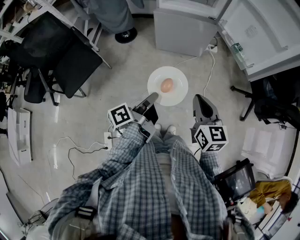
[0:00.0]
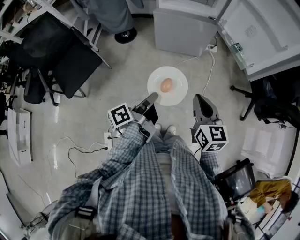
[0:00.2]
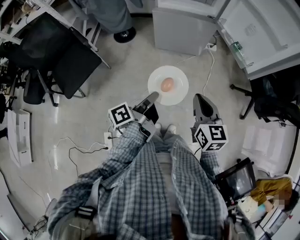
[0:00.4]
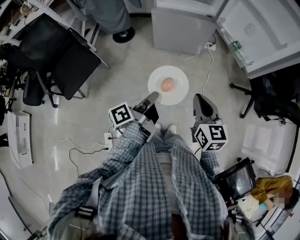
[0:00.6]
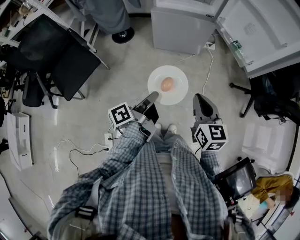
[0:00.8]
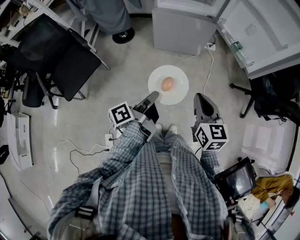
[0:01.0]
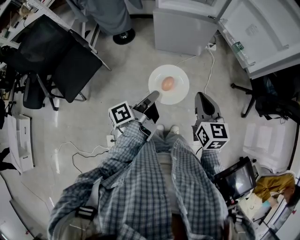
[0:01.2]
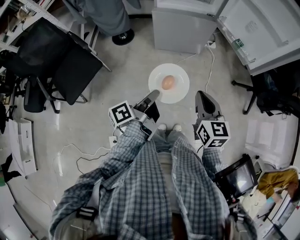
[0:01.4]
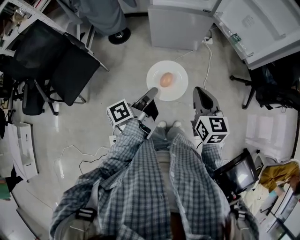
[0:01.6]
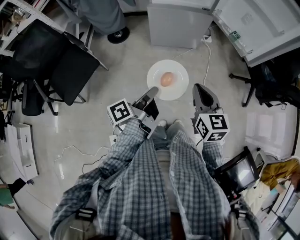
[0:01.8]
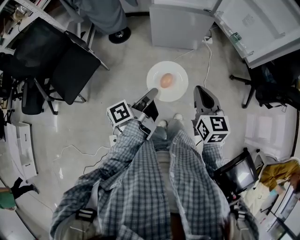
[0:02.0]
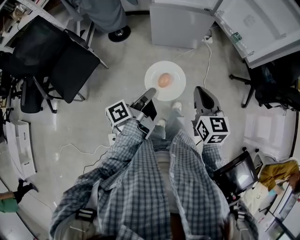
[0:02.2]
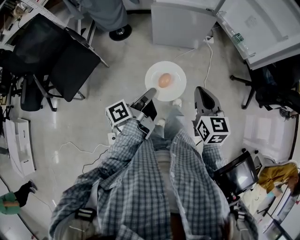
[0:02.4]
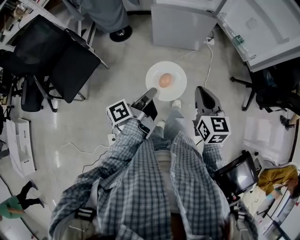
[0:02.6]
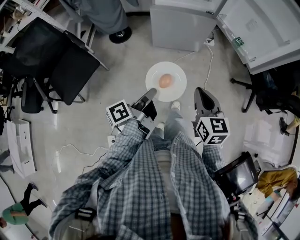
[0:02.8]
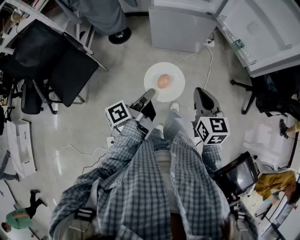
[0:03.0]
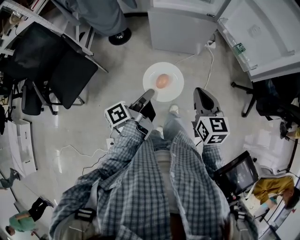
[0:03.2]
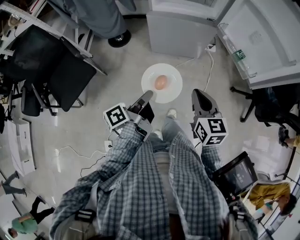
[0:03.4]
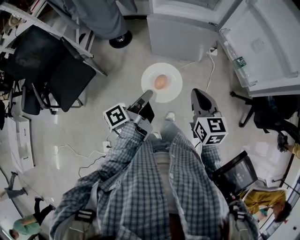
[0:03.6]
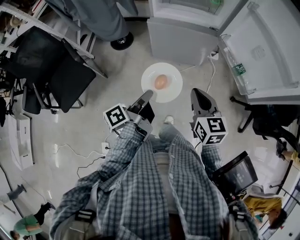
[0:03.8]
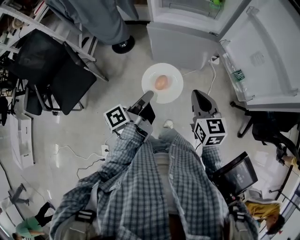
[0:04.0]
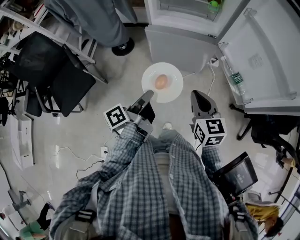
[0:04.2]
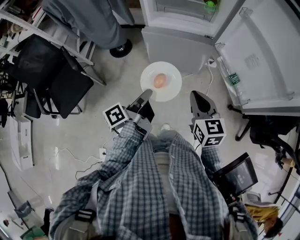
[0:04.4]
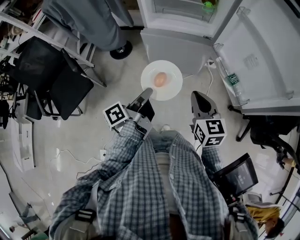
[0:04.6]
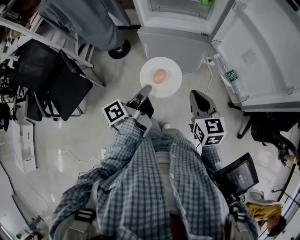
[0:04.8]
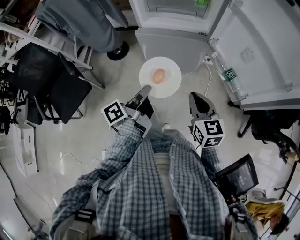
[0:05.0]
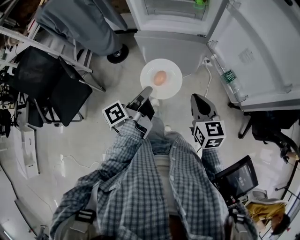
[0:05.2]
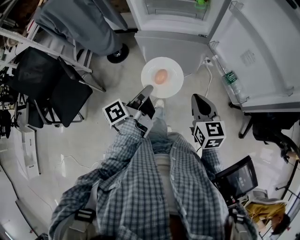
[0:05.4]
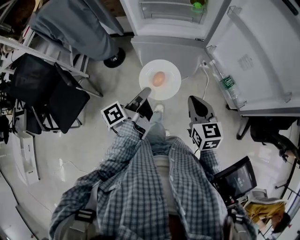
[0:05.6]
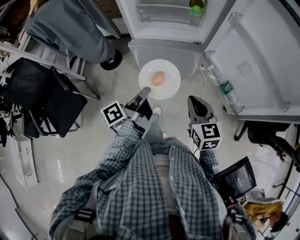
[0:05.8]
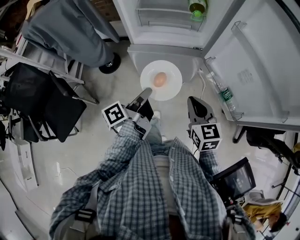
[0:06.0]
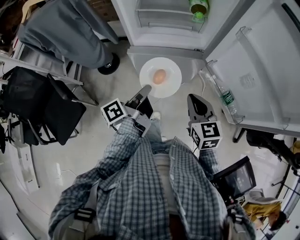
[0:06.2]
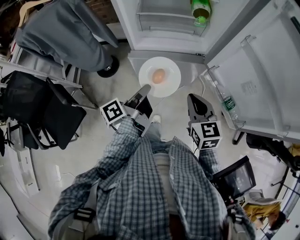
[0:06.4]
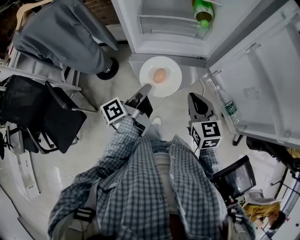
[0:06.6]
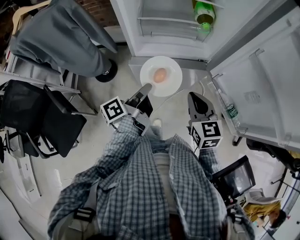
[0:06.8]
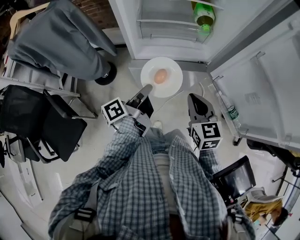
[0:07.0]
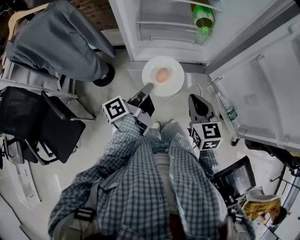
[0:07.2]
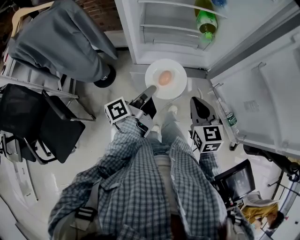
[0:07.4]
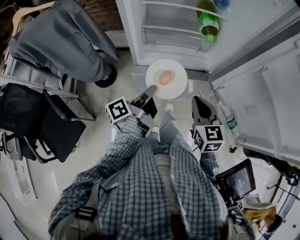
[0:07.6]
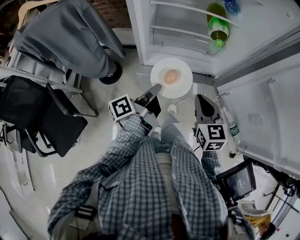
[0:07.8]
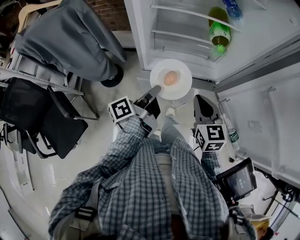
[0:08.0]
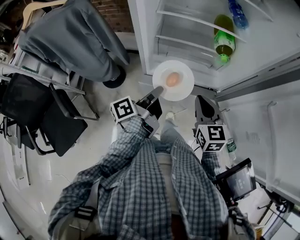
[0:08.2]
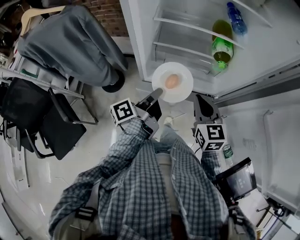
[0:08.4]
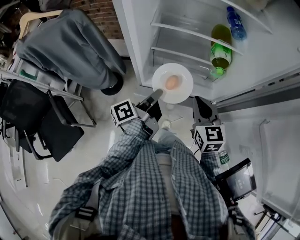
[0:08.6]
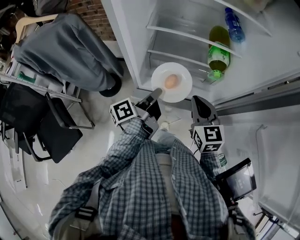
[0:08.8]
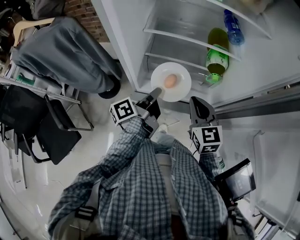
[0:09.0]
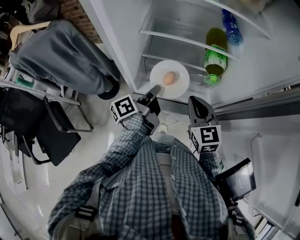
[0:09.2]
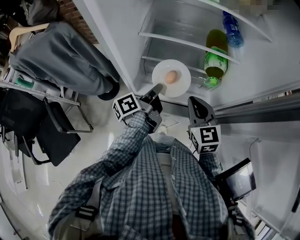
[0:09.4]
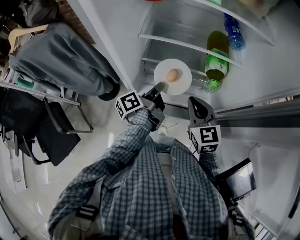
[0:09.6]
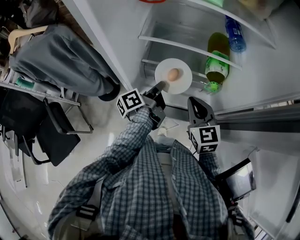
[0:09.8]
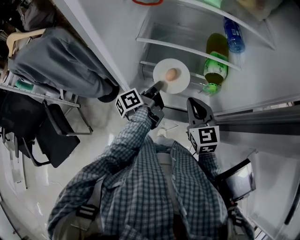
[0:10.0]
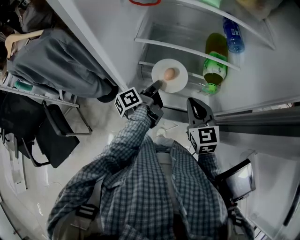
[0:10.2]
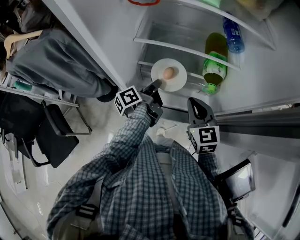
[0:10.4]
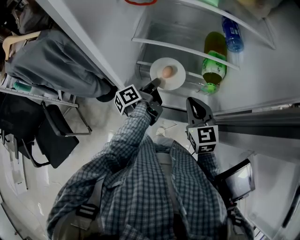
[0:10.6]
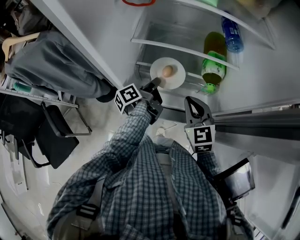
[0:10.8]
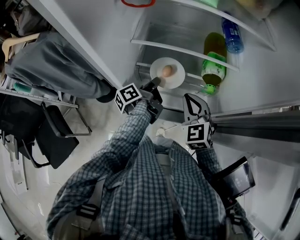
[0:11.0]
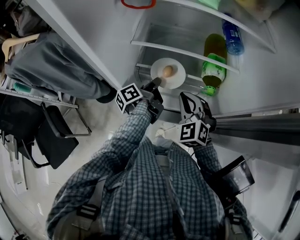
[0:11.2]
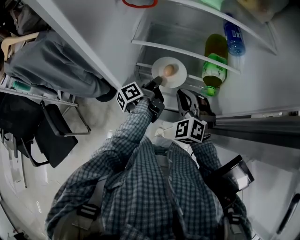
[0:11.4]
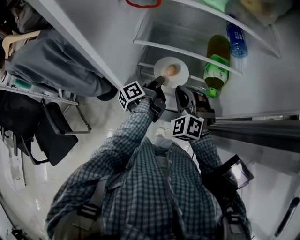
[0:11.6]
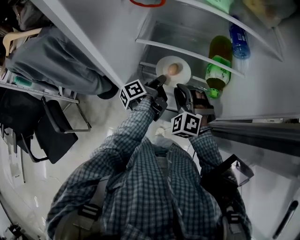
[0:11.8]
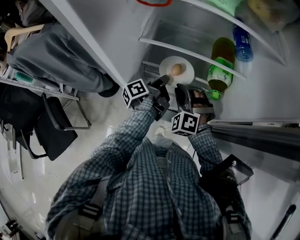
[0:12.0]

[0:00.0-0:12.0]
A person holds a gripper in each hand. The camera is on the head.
0:01.6 to 0:03.0: The right gripper moves about 5 cm.
0:03.0 to 0:04.4: The right gripper changes place by about 20 cm.
0:04.4 to 0:06.0: The right gripper ends up roughly 10 cm from where it was.
0:06.0 to 0:07.6: The right gripper shifts by approximately 15 cm.
0:07.6 to 0:09.0: The right gripper ends up some 20 cm from where it was.
0:09.0 to 0:10.4: The right gripper moves approximately 5 cm.
0:10.4 to 0:12.0: The right gripper shifts by some 10 cm, and rotates around the line of its fingers by some 60 degrees, counterclockwise from behind.

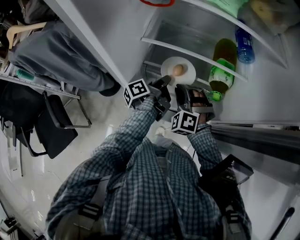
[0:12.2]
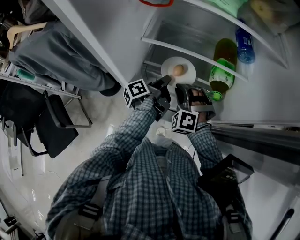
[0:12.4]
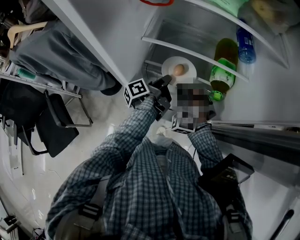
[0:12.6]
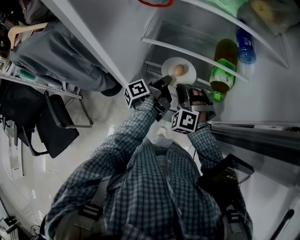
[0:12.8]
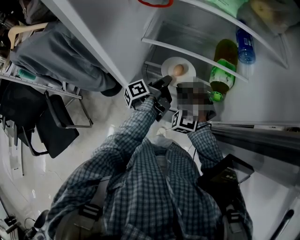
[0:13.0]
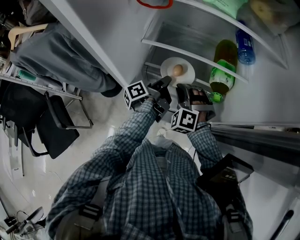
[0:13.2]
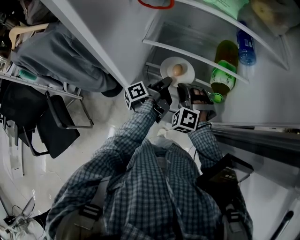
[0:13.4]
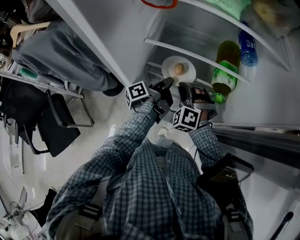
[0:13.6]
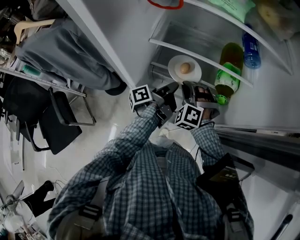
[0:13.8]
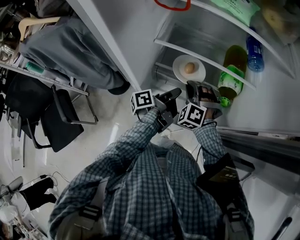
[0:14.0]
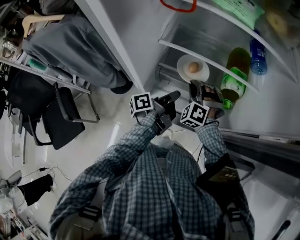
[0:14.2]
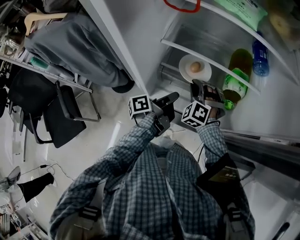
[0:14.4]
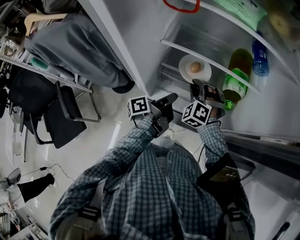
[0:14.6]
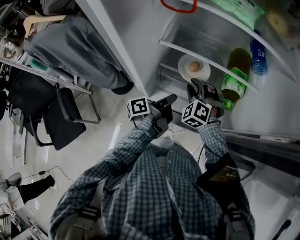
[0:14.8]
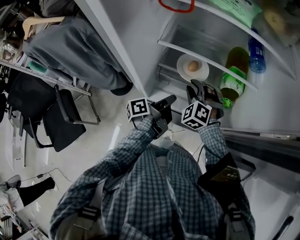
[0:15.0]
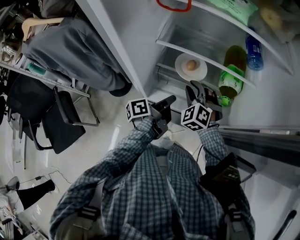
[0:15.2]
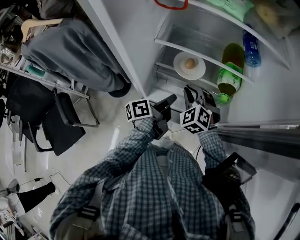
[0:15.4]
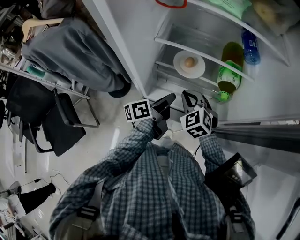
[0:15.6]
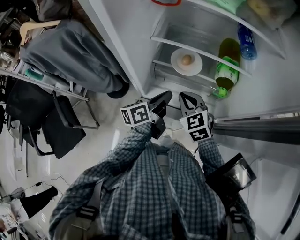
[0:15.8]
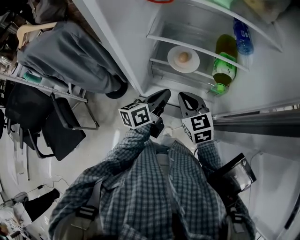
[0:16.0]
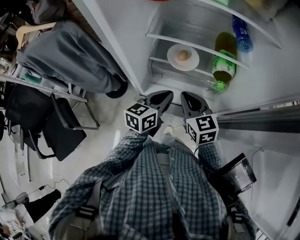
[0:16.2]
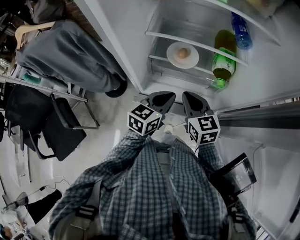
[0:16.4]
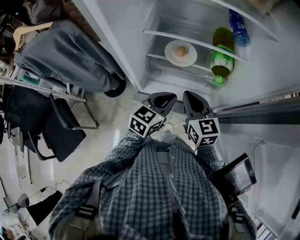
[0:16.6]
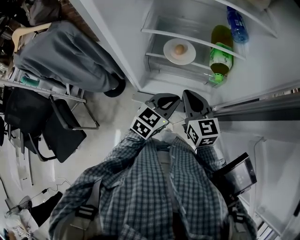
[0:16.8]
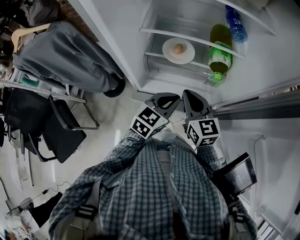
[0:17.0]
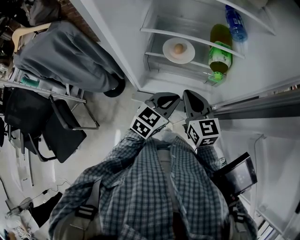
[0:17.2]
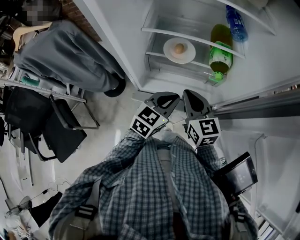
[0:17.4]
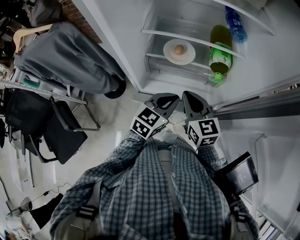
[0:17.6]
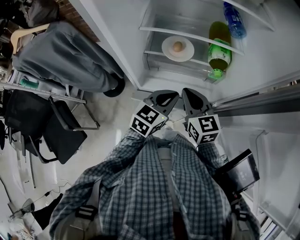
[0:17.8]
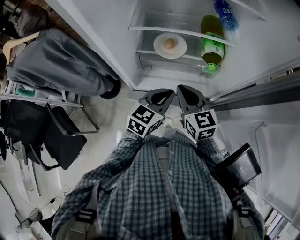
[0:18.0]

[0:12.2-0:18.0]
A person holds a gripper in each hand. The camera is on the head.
0:15.0 to 0:16.6: The right gripper moves approximately 15 cm, twists about 60 degrees clockwise, seen from behind, and closes.

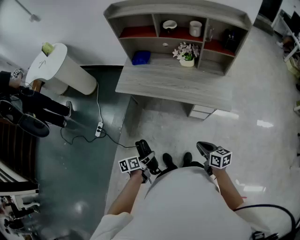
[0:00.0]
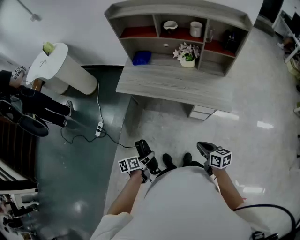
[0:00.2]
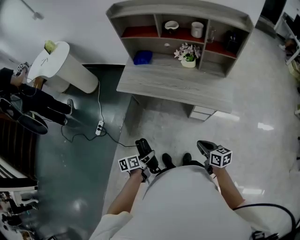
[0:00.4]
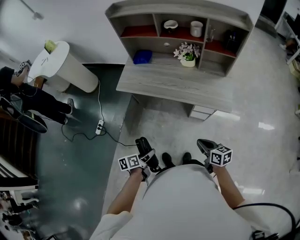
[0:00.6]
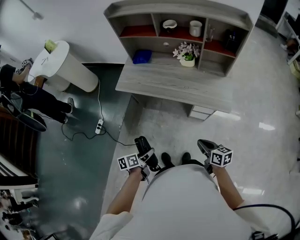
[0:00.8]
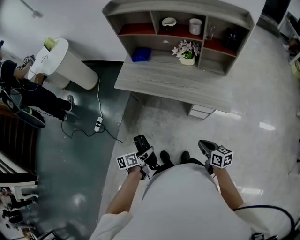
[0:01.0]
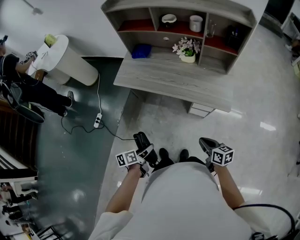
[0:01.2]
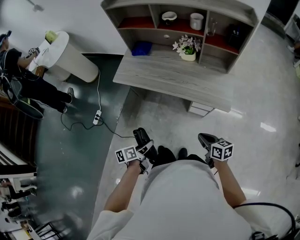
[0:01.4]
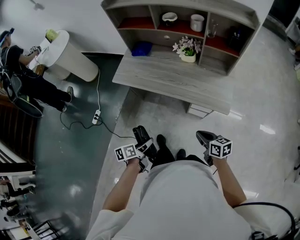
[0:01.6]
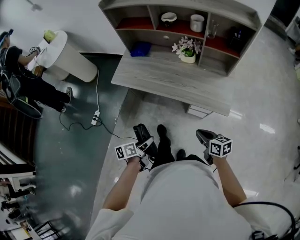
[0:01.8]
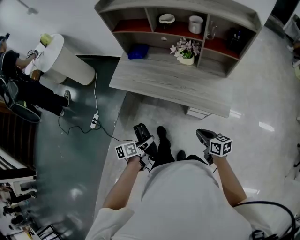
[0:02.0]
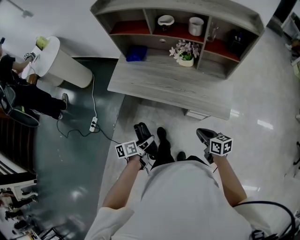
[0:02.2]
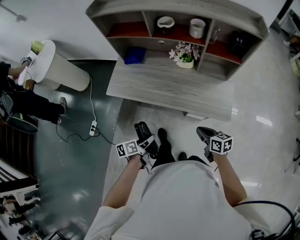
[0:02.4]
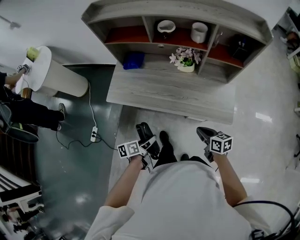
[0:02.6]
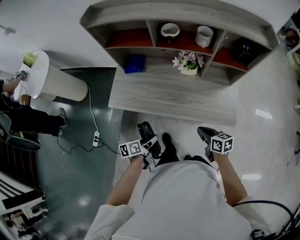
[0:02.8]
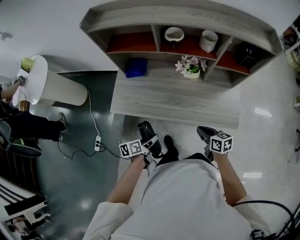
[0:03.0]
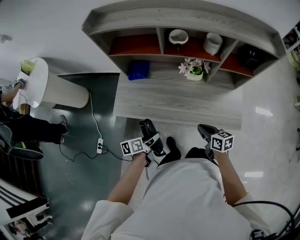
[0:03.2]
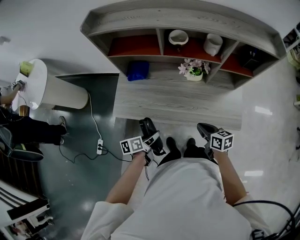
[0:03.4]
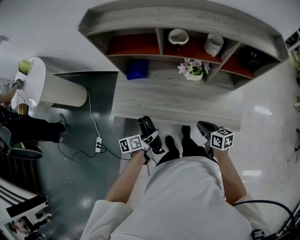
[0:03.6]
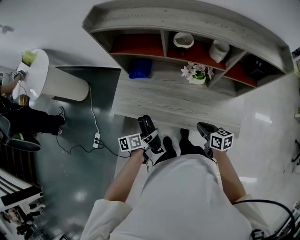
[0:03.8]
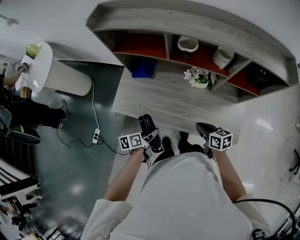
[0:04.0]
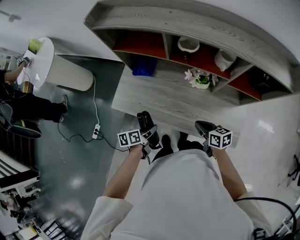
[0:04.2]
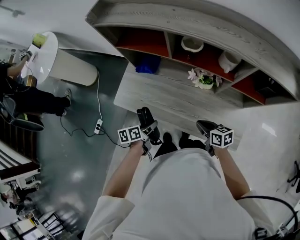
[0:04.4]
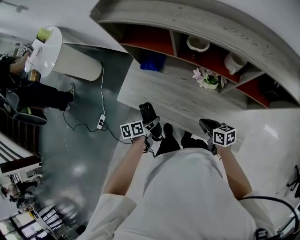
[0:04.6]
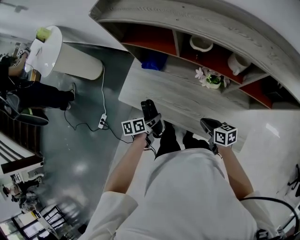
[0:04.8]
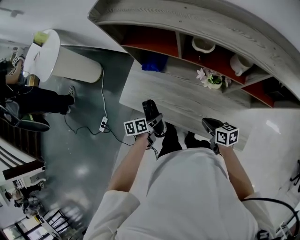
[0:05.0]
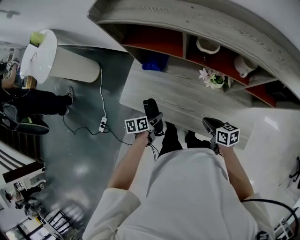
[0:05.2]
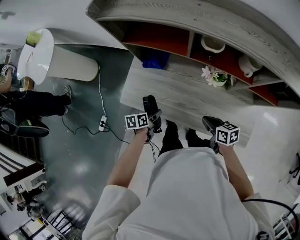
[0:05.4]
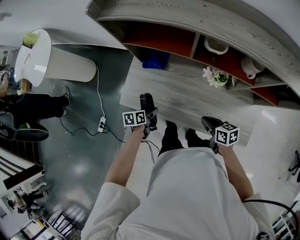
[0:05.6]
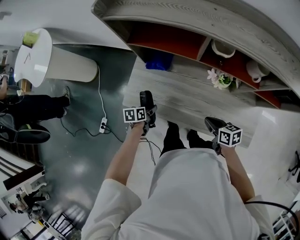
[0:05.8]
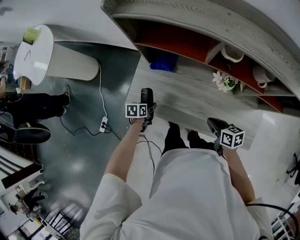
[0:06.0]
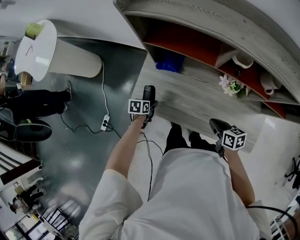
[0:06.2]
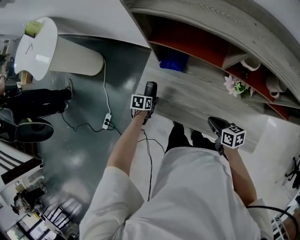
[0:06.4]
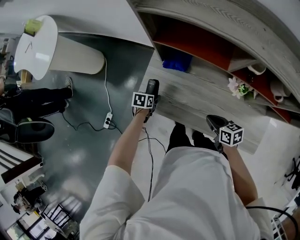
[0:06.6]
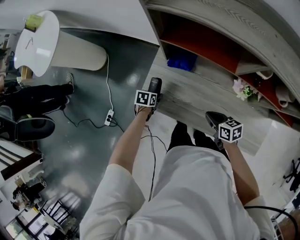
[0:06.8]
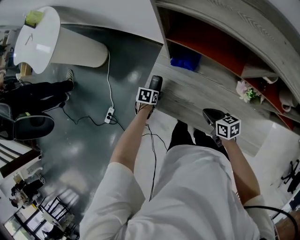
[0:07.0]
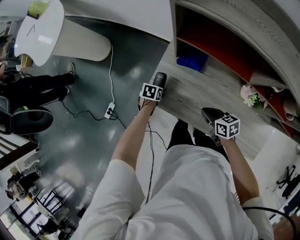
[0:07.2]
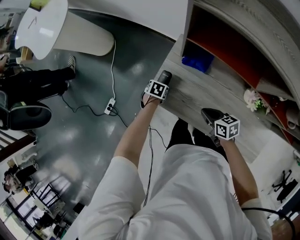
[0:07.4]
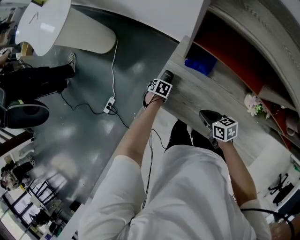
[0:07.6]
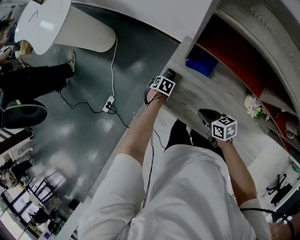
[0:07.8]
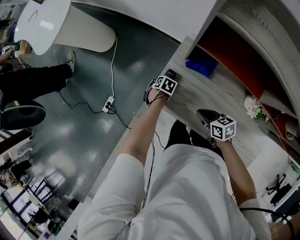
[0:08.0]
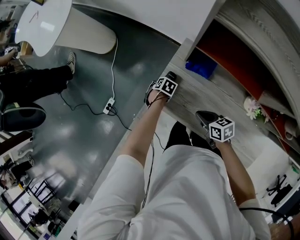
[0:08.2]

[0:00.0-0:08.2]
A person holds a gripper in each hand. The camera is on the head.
0:00.0 to 0:01.6: The two grippers go some 10 cm to the right and forward.
0:01.6 to 0:03.2: The left gripper shifts about 30 cm forward. The right gripper travels forward and to the left by about 25 cm.
0:03.2 to 0:05.0: Both grippers move forward, some 10 cm.
0:05.0 to 0:06.6: The left gripper shifts roughly 25 cm to the left, forward and downward, and rotates about 30 degrees. The right gripper moves to the left and forward, roughly 15 cm.
0:06.6 to 0:08.2: The right gripper moves about 15 cm, while the left gripper travels downward by some 5 cm, and swivels some 20 degrees.
